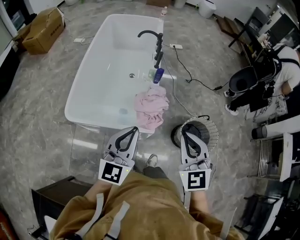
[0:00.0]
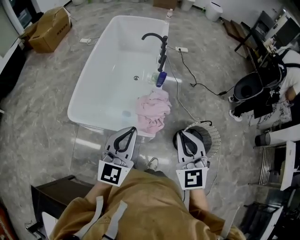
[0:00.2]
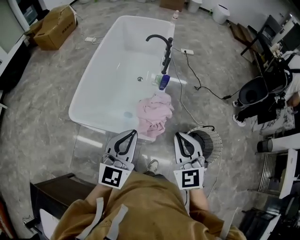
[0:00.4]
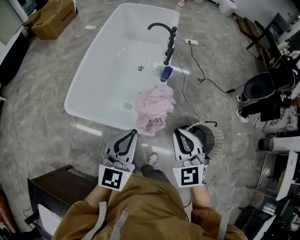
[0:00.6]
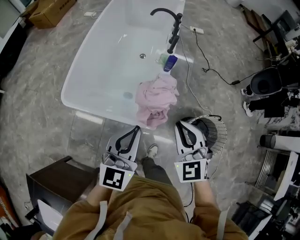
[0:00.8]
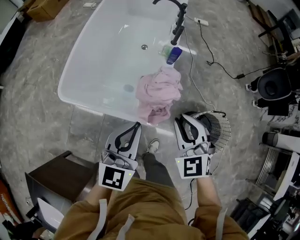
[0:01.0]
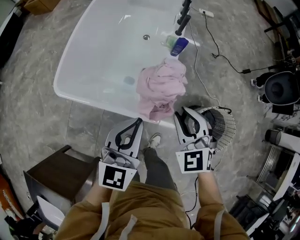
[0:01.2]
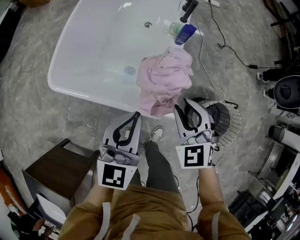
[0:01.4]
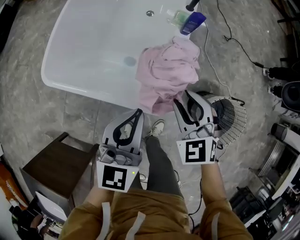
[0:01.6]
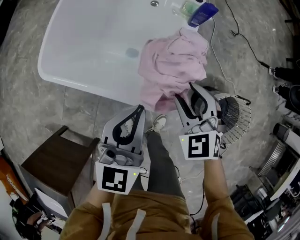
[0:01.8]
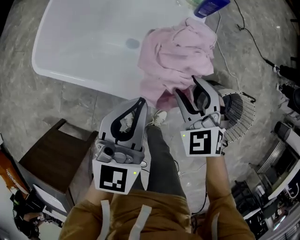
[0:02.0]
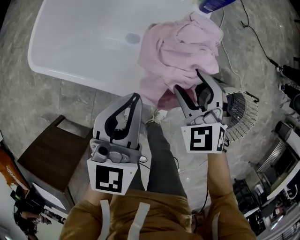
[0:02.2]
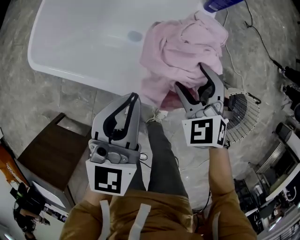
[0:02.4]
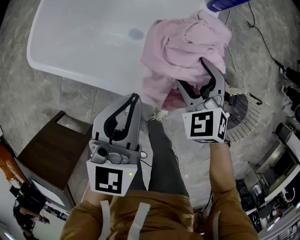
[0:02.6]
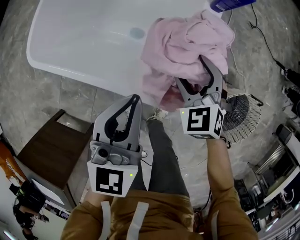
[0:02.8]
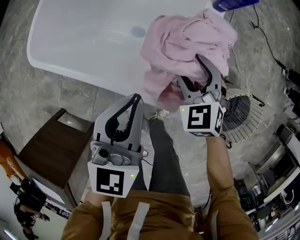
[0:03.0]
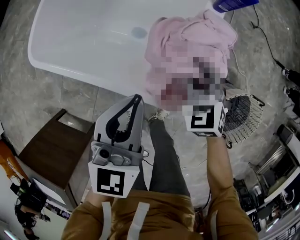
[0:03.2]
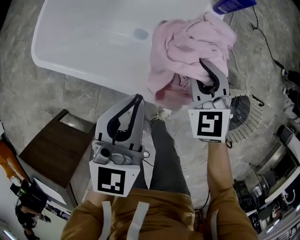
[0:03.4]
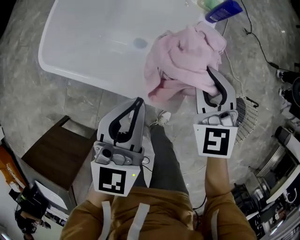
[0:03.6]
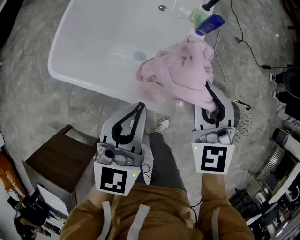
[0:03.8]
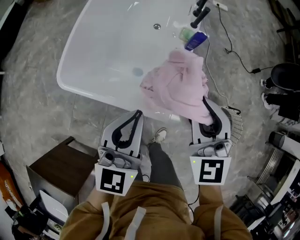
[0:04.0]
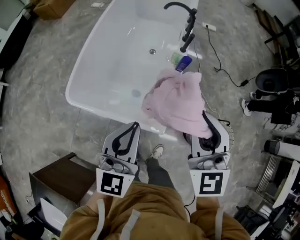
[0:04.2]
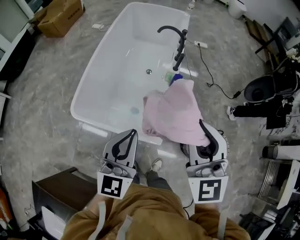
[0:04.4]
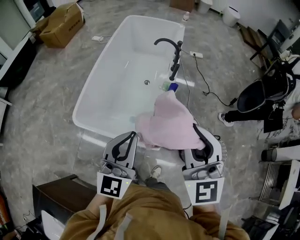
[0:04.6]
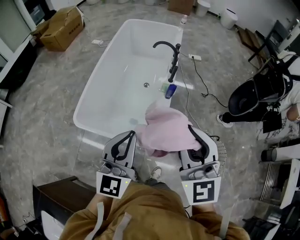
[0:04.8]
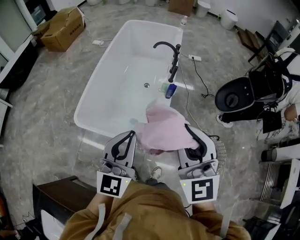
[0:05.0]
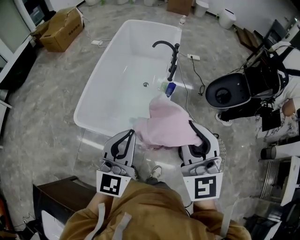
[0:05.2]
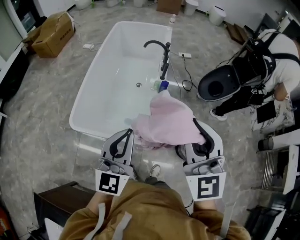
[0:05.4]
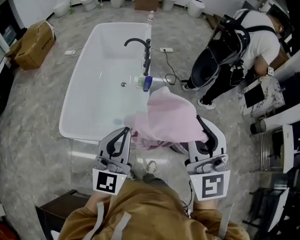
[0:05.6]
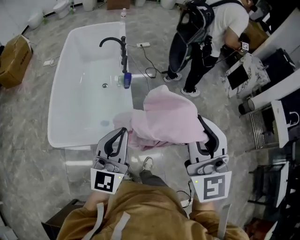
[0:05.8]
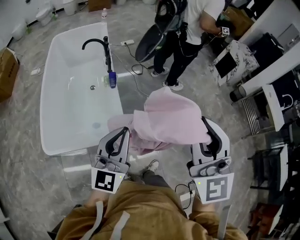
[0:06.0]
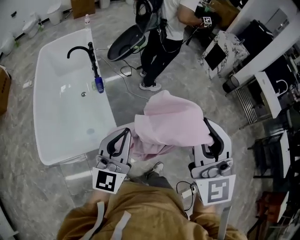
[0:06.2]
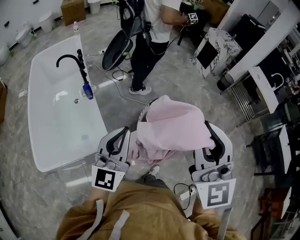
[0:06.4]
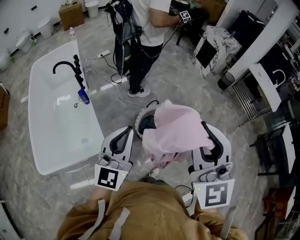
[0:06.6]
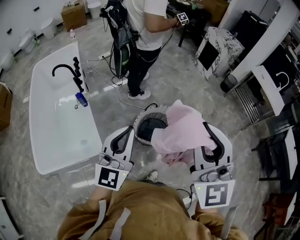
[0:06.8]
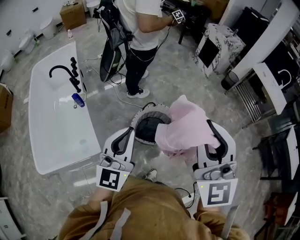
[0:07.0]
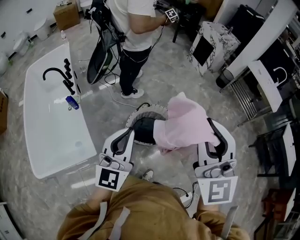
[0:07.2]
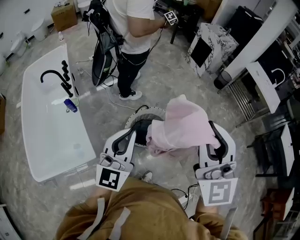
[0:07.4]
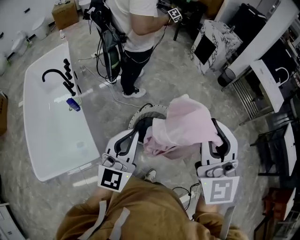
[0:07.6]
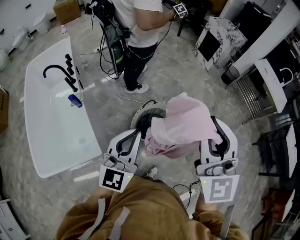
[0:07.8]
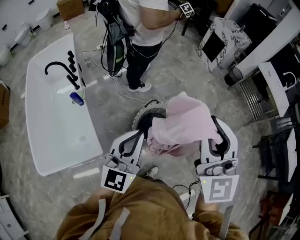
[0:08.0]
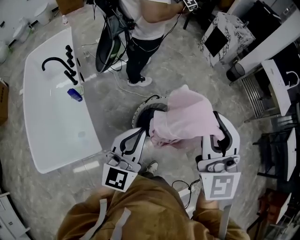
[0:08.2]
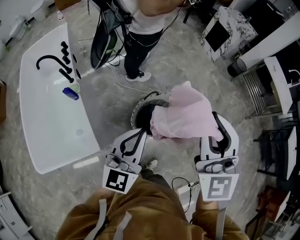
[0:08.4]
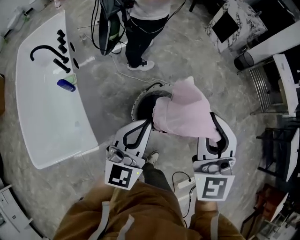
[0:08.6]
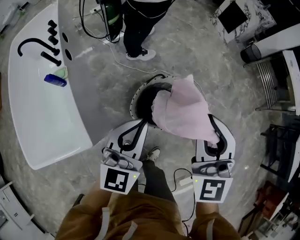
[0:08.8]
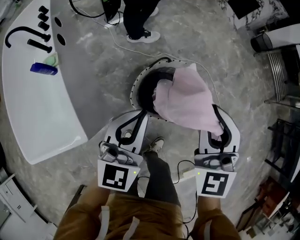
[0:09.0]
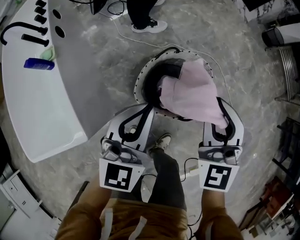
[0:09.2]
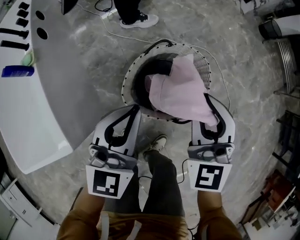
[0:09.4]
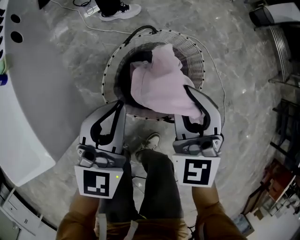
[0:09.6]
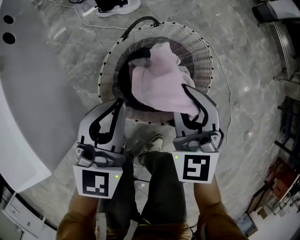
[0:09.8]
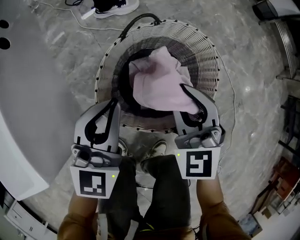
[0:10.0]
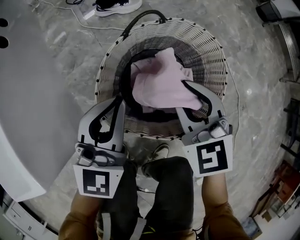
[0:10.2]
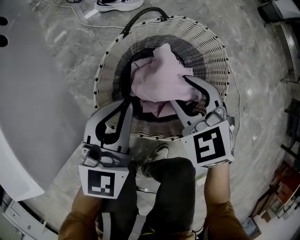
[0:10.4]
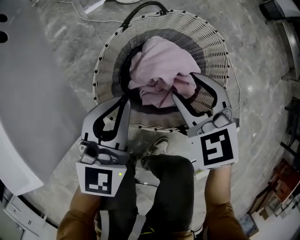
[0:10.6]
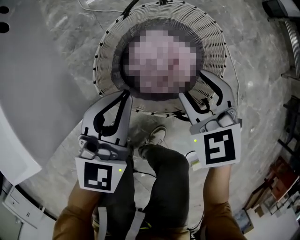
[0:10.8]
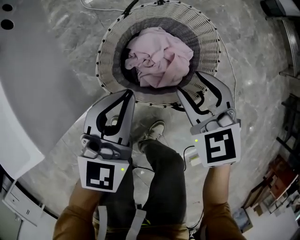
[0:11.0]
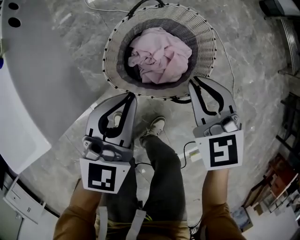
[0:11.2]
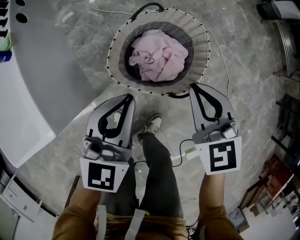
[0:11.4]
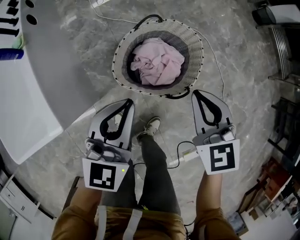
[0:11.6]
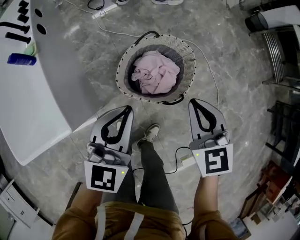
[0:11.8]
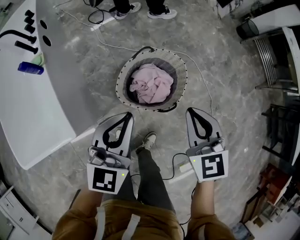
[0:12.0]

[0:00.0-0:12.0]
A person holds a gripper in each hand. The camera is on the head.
0:00.0 to 0:01.6: Both grippers travel together downward and forward, some 30 cm. The right gripper turns by roughly 30 degrees, and opens.
0:01.6 to 0:03.0: The left gripper travels downward by approximately 10 cm. The right gripper moves downward, some 15 cm, and opens up.
0:03.0 to 0:04.4: The right gripper goes approximately 50 cm upward, tips its fingers upward by roughly 40 degrees, and closes up, while the left gripper travels upward by about 30 cm.
0:04.4 to 0:06.0: The right gripper changes place by about 25 cm, and turns by approximately 30 degrees. Meanwhile the left gripper moves approximately 15 cm, and turns by about 30 degrees.
0:06.0 to 0:07.6: The two grippers go about 35 cm to the right and forward.
0:07.6 to 0:09.0: Both grippers move downward and forward, some 35 cm.
0:09.0 to 0:10.4: Both grippers move downward, approximately 40 cm. The right gripper angles its fingers downward, by roughly 30 degrees.
0:10.4 to 0:12.0: The two grippers go about 35 cm upward. The right gripper swivels about 20 degrees, and closes its fingers.

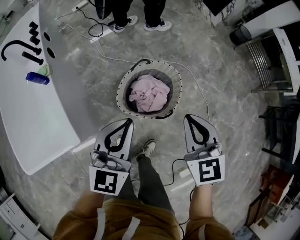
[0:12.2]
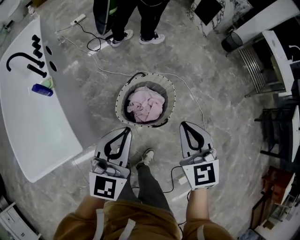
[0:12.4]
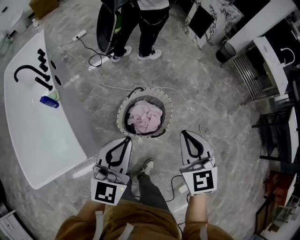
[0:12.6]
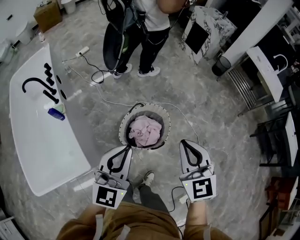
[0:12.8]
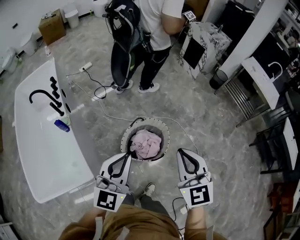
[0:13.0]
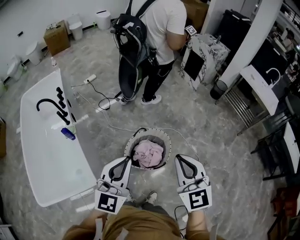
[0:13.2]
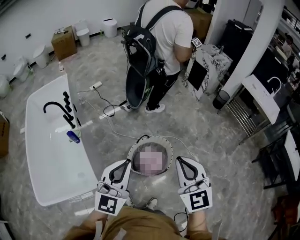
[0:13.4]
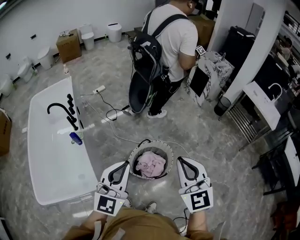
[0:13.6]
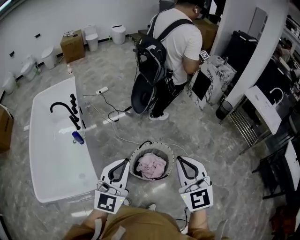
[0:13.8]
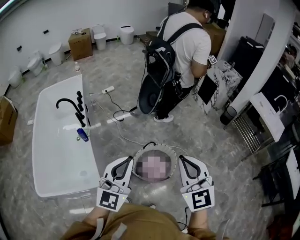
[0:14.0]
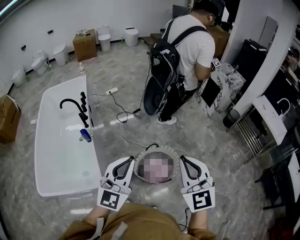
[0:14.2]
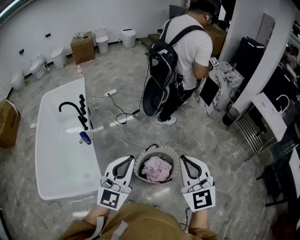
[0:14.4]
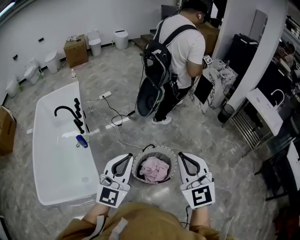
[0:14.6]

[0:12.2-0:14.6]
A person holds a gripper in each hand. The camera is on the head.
0:12.2 to 0:13.4: The two grippers go about 25 cm upward. The right gripper turns by about 20 degrees.
0:13.4 to 0:14.6: The right gripper goes approximately 5 cm upward.

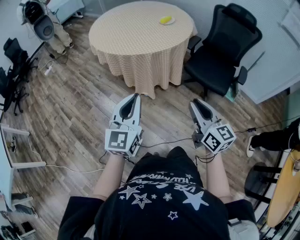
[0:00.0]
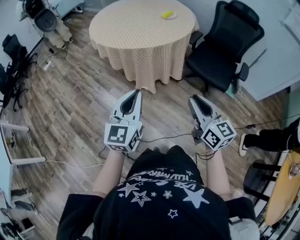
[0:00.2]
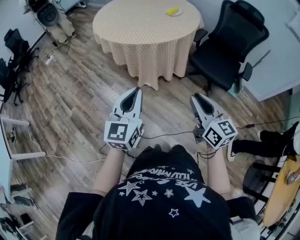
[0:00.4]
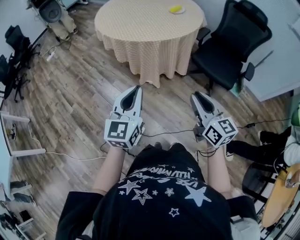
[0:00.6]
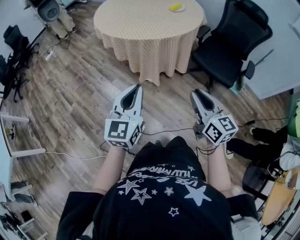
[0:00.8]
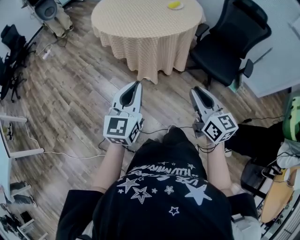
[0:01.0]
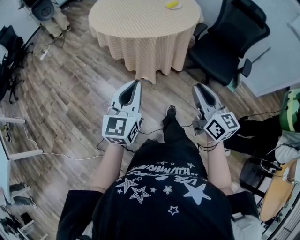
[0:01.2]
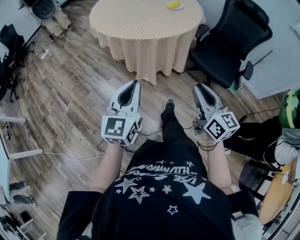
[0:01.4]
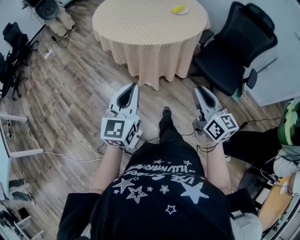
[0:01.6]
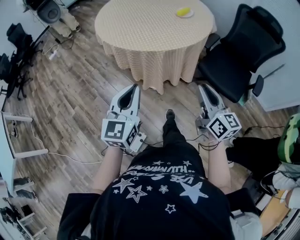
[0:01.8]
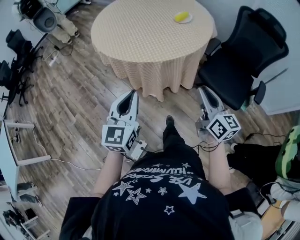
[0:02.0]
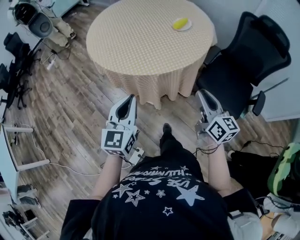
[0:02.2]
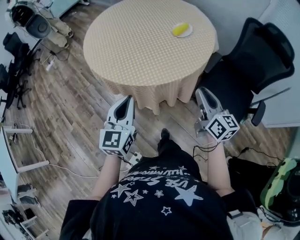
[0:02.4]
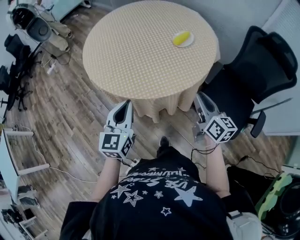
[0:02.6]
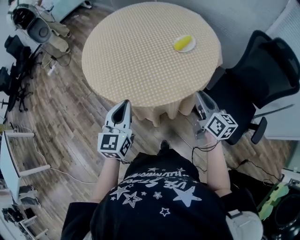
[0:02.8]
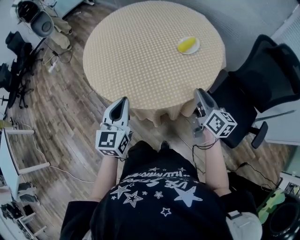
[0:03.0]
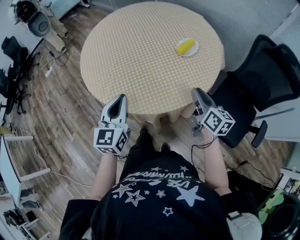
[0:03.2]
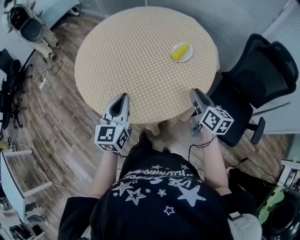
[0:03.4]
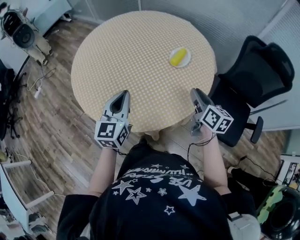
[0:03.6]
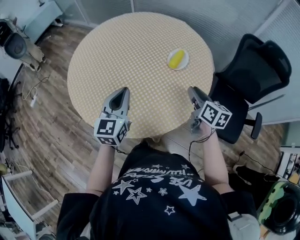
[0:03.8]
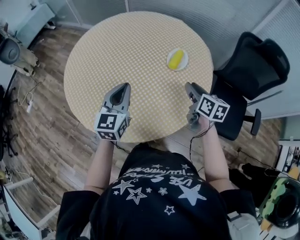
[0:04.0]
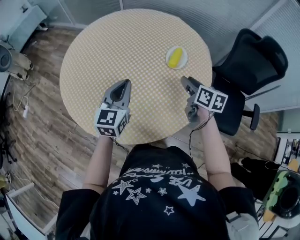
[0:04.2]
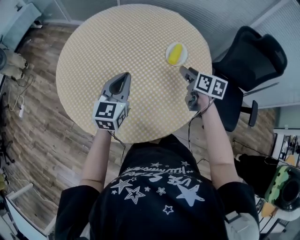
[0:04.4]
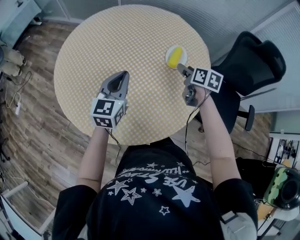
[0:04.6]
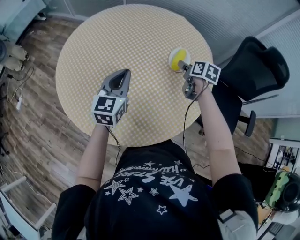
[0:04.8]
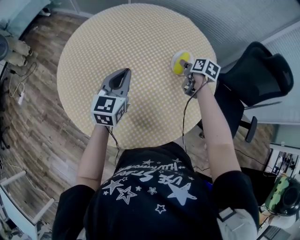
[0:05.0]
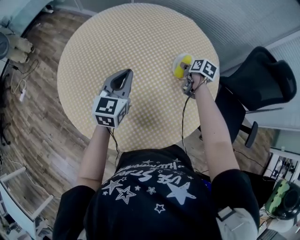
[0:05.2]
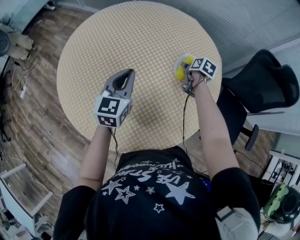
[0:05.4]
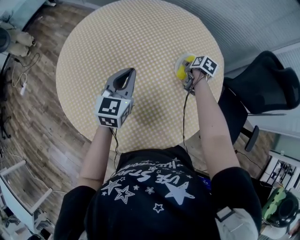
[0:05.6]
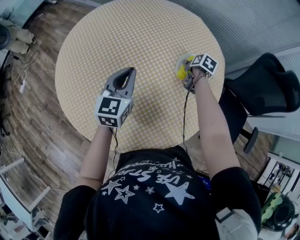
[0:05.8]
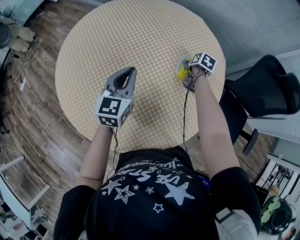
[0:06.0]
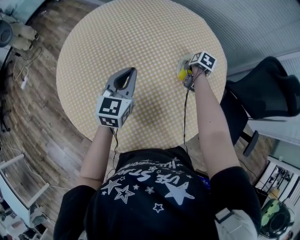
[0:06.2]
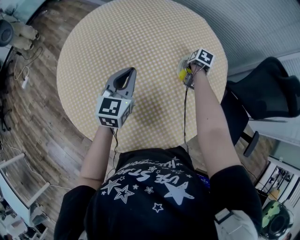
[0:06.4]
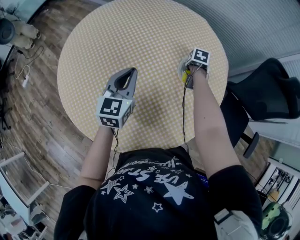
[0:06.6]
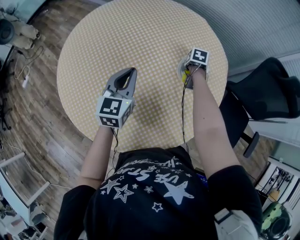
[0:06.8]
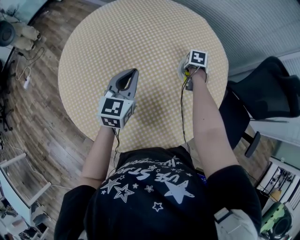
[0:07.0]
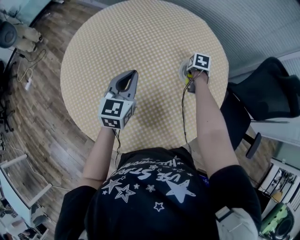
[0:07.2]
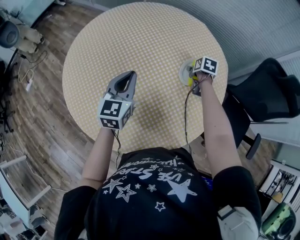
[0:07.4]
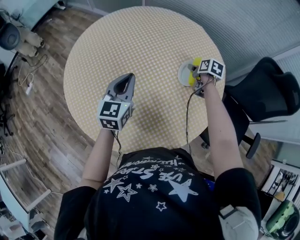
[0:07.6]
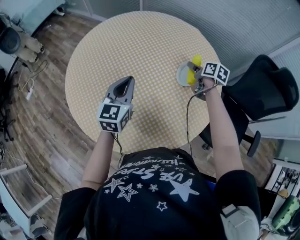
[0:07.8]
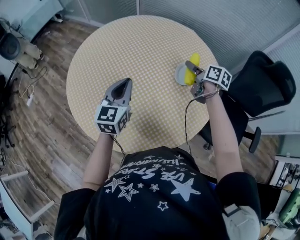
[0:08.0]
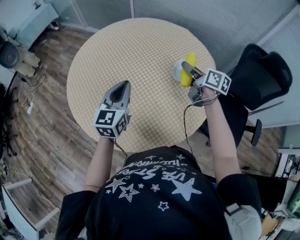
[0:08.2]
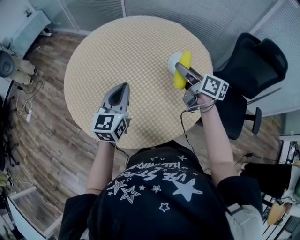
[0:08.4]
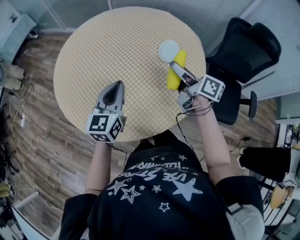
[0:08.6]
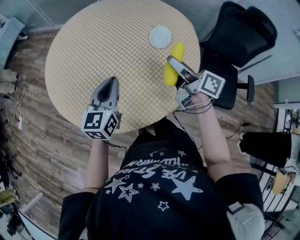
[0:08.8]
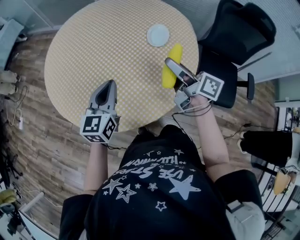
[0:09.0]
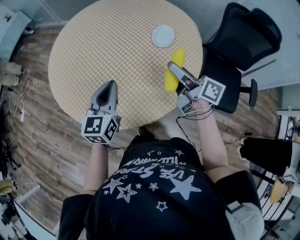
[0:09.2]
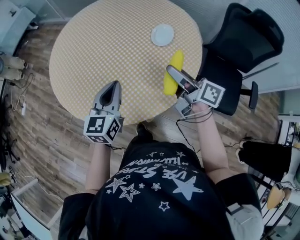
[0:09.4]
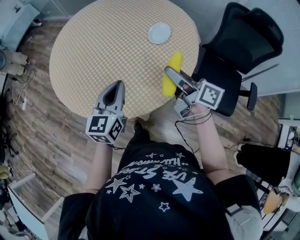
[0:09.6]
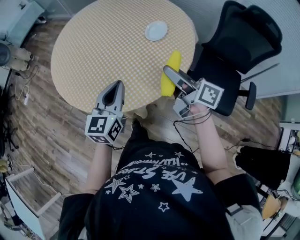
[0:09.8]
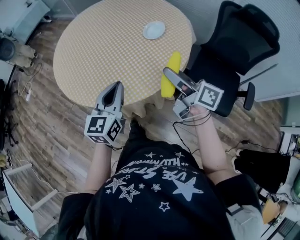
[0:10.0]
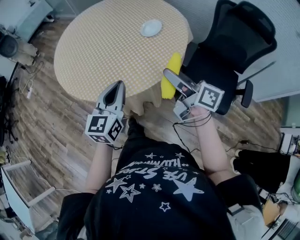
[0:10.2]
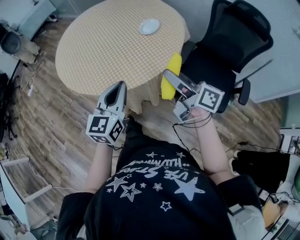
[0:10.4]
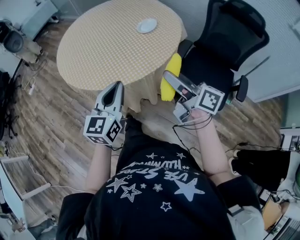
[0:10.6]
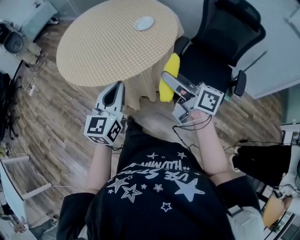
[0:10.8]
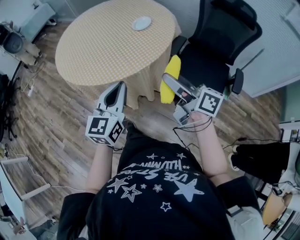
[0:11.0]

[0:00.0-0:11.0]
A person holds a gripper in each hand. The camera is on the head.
0:00.0 to 0:01.6: The two grippers go about 10 cm forward.
0:01.6 to 0:03.2: Both grippers are carried forward, some 50 cm.
0:03.2 to 0:04.8: Both grippers travel together forward, about 25 cm. The left gripper swivels some 20 degrees, while the right gripper rotates some 30 degrees, and opens up.
0:04.8 to 0:06.2: The left gripper is displaced forward by roughly 5 cm. Meanwhile the right gripper is displaced downward and forward by roughly 15 cm, and changes its angle by roughly 20 degrees.
0:06.2 to 0:07.8: The left gripper changes place by some 5 cm. The right gripper shifts some 10 cm upward, and changes its angle by approximately 30 degrees.
0:07.8 to 0:09.4: The left gripper is displaced backward by roughly 15 cm. The right gripper travels backward and upward by some 30 cm, and tips its fingers upward by some 40 degrees.
0:09.4 to 0:11.0: The left gripper moves backward and to the right, roughly 35 cm. Meanwhile the right gripper travels backward by roughly 30 cm.
